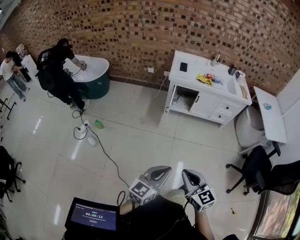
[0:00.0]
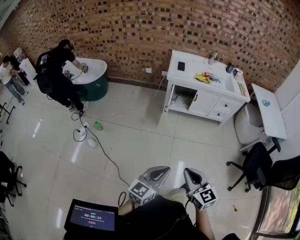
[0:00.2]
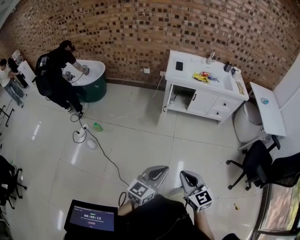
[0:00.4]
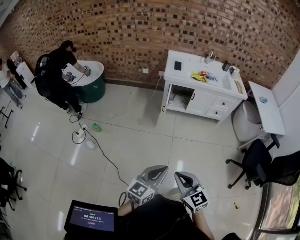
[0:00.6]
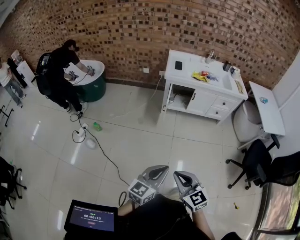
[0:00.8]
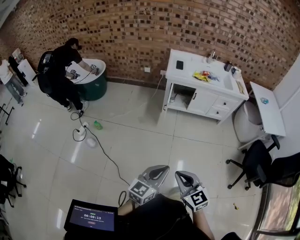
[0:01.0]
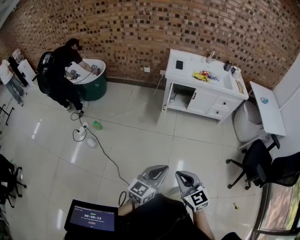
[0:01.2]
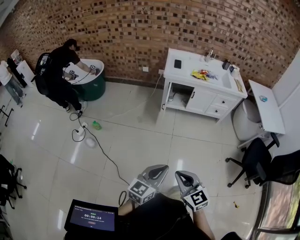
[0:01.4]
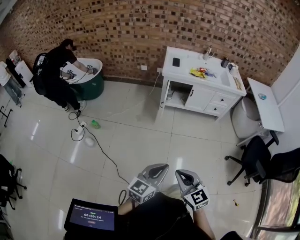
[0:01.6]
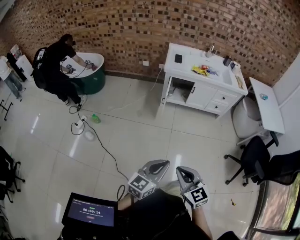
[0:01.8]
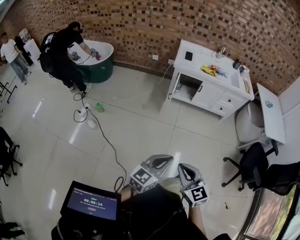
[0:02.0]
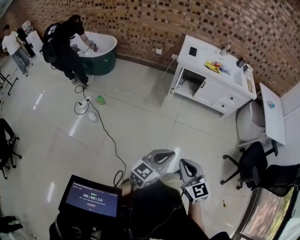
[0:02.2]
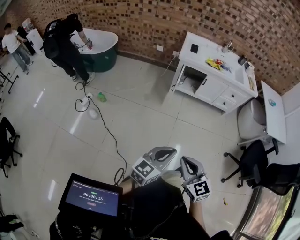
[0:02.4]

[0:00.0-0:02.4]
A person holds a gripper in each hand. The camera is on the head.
0:00.0 to 0:01.2: The right gripper ends up roughly 5 cm from where it was.
0:01.2 to 0:02.4: There are only small adjustments of the grippers.

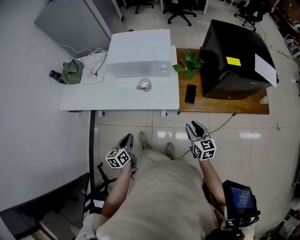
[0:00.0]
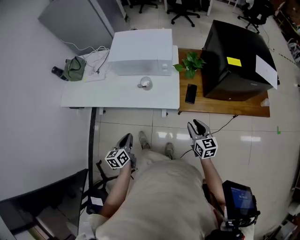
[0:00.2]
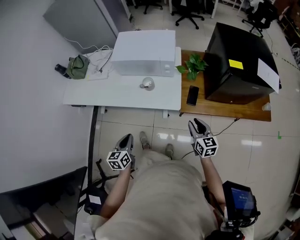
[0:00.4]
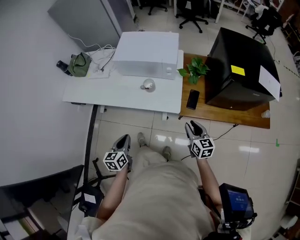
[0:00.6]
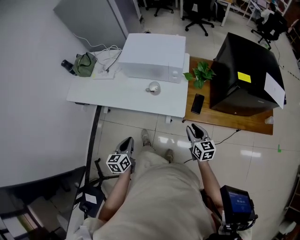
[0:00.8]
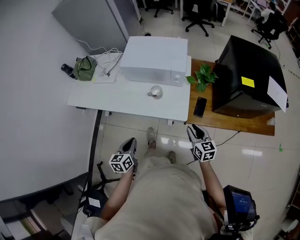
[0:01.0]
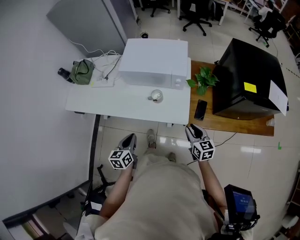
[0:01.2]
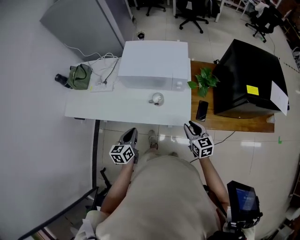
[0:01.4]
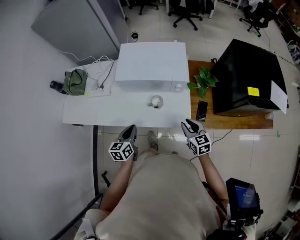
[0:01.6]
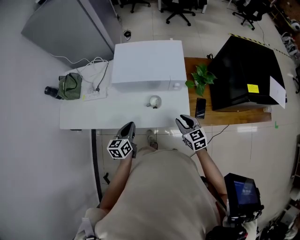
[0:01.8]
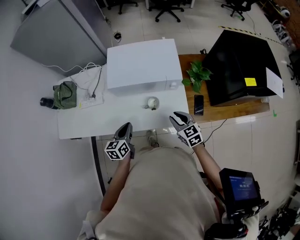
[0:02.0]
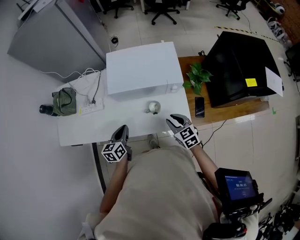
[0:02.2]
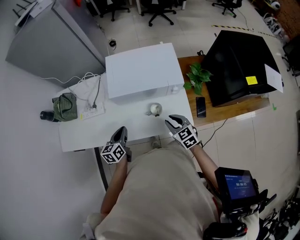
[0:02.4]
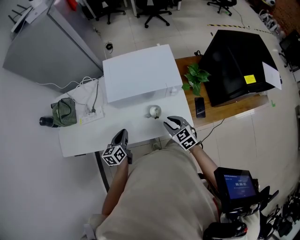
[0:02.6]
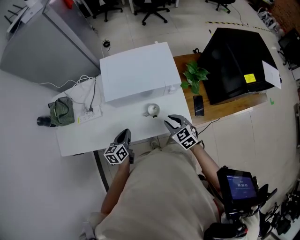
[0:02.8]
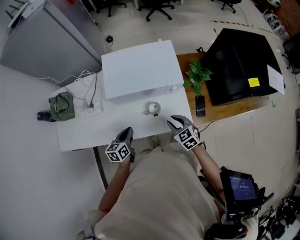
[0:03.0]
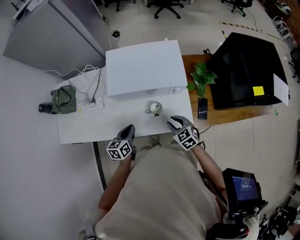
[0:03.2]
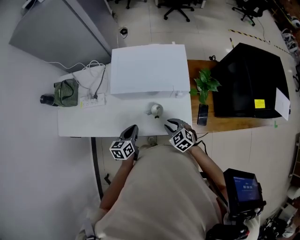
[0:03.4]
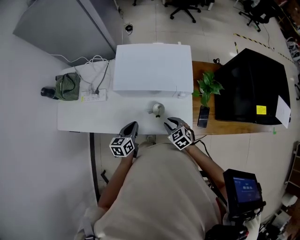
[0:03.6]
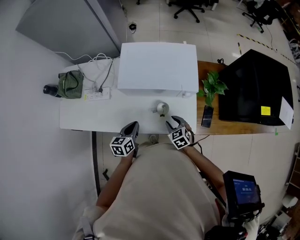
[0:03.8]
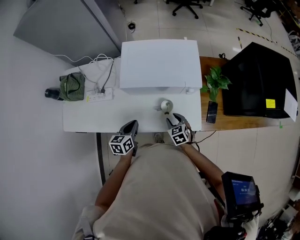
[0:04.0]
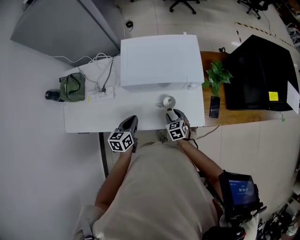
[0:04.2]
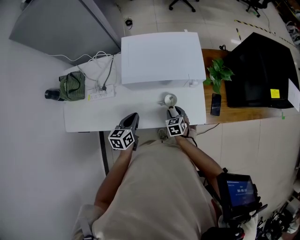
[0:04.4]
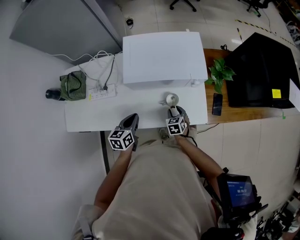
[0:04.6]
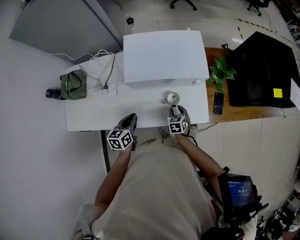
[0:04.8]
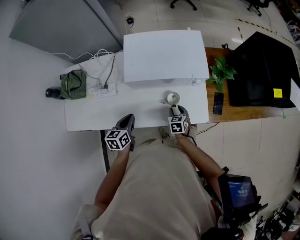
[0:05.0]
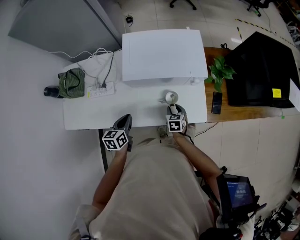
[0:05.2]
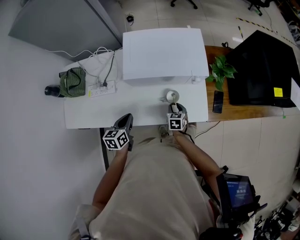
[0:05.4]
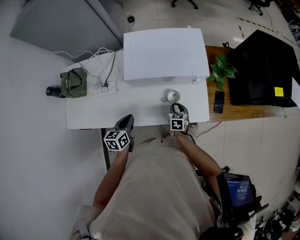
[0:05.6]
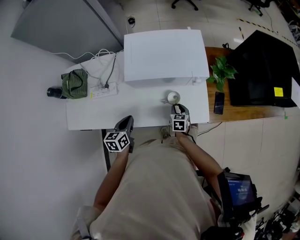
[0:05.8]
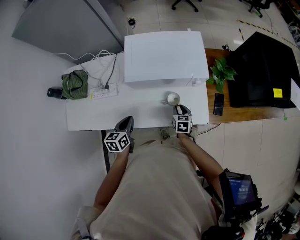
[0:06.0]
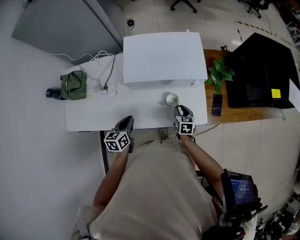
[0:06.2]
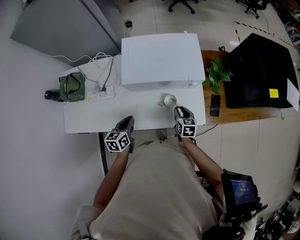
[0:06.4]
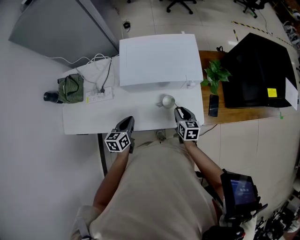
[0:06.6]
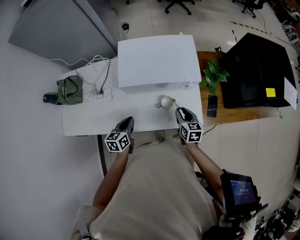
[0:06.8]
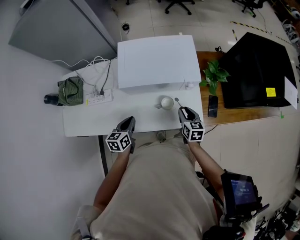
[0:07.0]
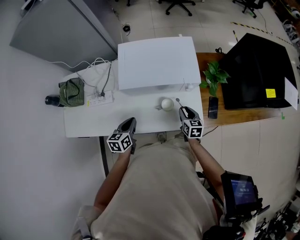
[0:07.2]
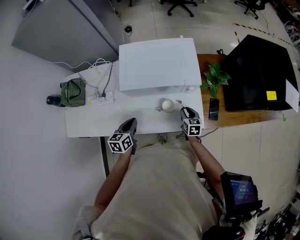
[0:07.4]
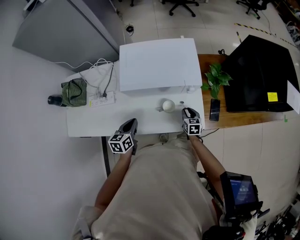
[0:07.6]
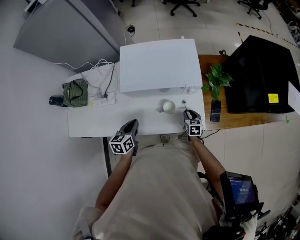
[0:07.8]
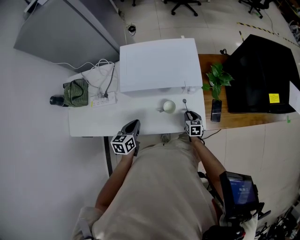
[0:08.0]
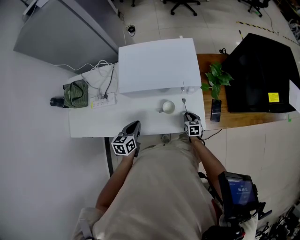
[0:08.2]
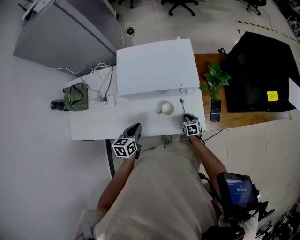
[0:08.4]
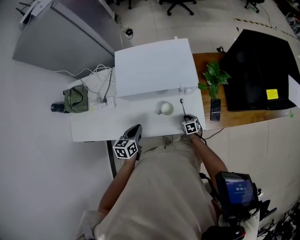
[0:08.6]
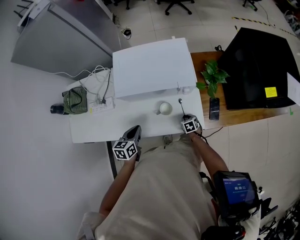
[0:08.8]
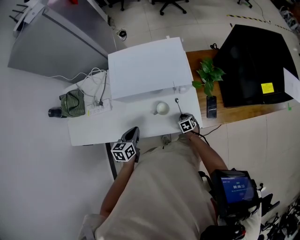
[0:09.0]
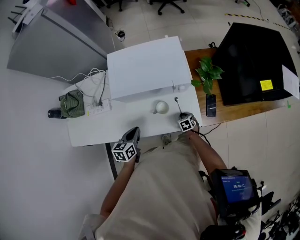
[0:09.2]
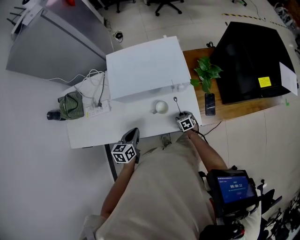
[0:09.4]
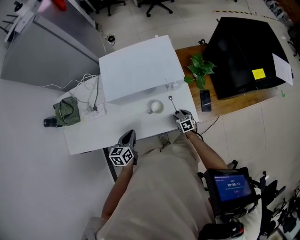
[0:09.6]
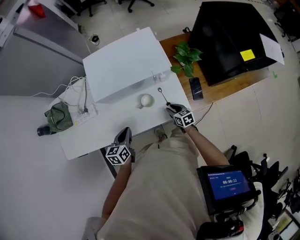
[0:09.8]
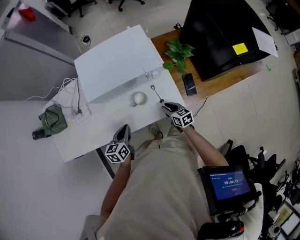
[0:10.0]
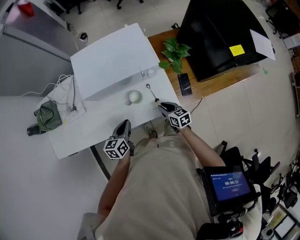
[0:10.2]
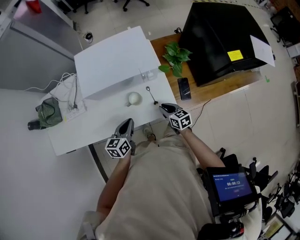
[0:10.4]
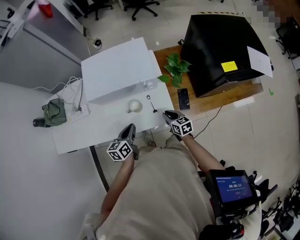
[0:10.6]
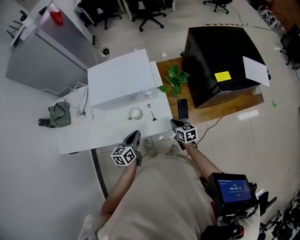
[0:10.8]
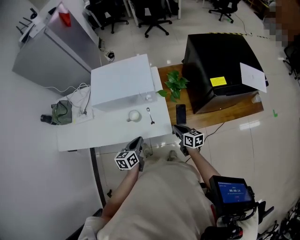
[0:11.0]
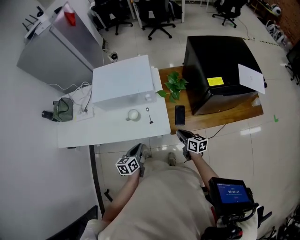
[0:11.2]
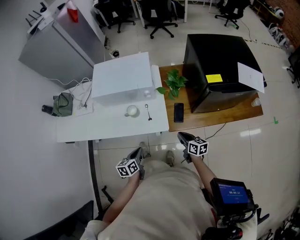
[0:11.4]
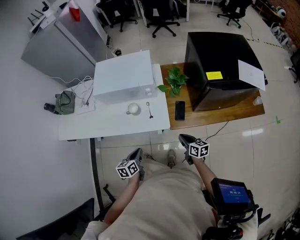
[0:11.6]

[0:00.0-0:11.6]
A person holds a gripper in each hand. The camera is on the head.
0:00.0 to 0:01.4: The left gripper travels forward by roughly 15 cm, while the right gripper is displaced forward and to the left by roughly 15 cm.
0:01.4 to 0:02.8: The right gripper is displaced to the left and forward by approximately 15 cm. Meanwhile the left gripper goes approximately 15 cm forward and to the left.
0:02.8 to 0:04.4: The right gripper is displaced downward by roughly 15 cm, and swivels some 20 degrees.
0:04.4 to 0:05.8: The left gripper moves some 5 cm.
0:05.8 to 0:07.2: The left gripper shifts by some 5 cm. Meanwhile the right gripper goes some 10 cm to the right and upward.
0:07.2 to 0:08.8: The right gripper shifts roughly 20 cm downward, and turns by some 30 degrees.
0:08.8 to 0:10.2: The right gripper shifts roughly 15 cm upward, swivels some 30 degrees, and opens, then closes once more, while the left gripper moves to the right, some 5 cm.
0:10.2 to 0:11.6: The right gripper shifts some 25 cm to the right and backward, while the left gripper travels backward and to the right by roughly 25 cm.

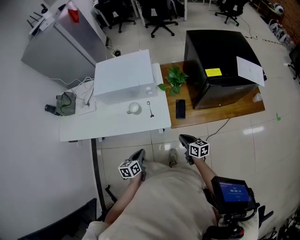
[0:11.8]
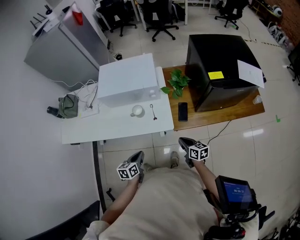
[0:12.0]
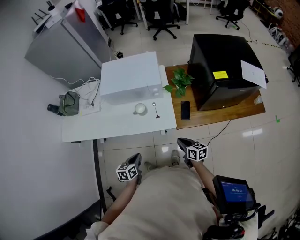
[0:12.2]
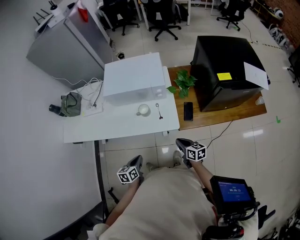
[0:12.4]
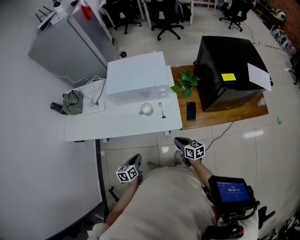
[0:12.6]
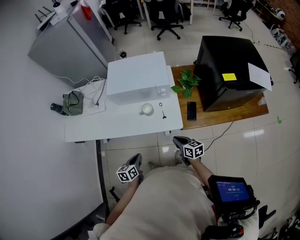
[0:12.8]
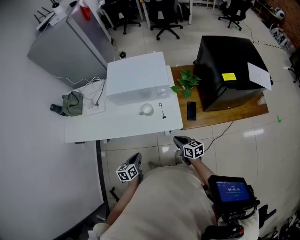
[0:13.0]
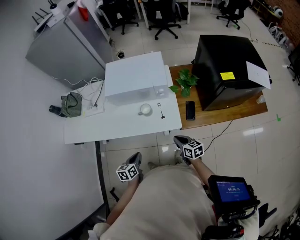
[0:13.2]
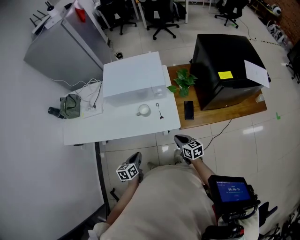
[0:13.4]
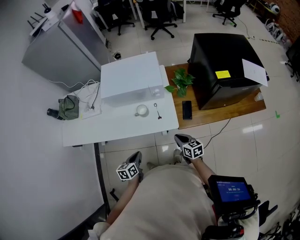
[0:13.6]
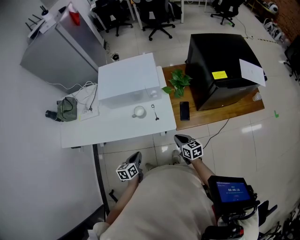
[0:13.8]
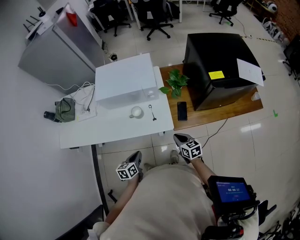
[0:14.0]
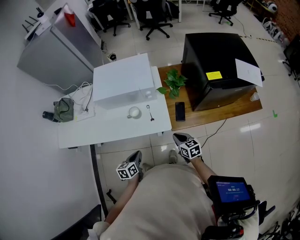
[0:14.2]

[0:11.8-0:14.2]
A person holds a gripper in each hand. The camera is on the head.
0:11.8 to 0:13.0: Both grippers travel together to the left, roughly 10 cm.
0:13.0 to 0:14.2: The grippers both shift to the right by about 10 cm.

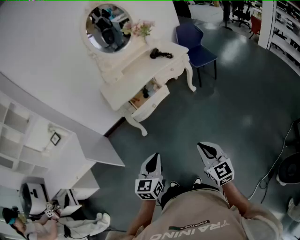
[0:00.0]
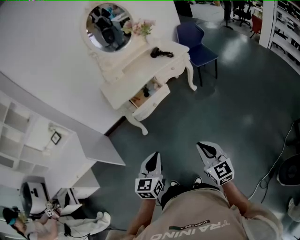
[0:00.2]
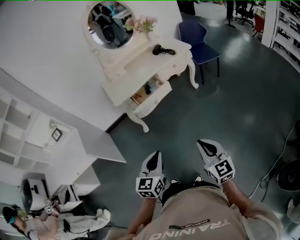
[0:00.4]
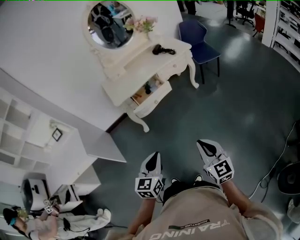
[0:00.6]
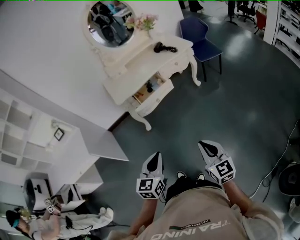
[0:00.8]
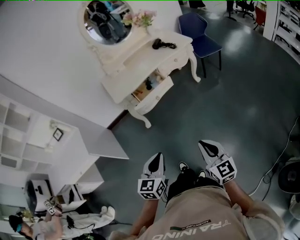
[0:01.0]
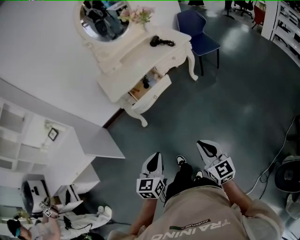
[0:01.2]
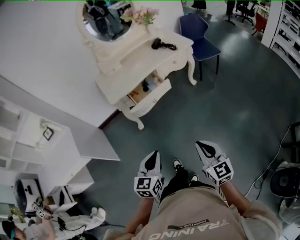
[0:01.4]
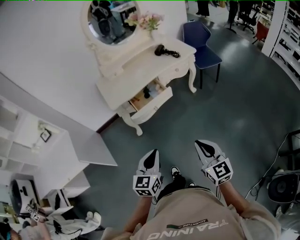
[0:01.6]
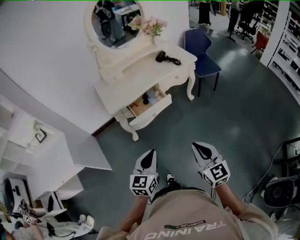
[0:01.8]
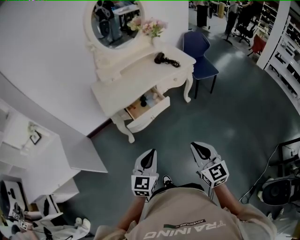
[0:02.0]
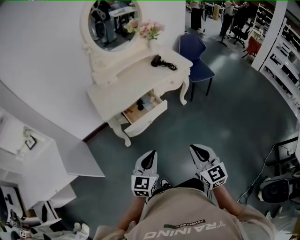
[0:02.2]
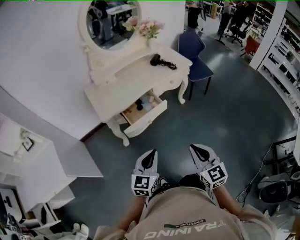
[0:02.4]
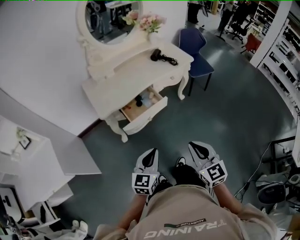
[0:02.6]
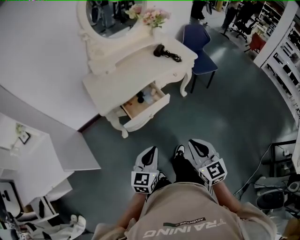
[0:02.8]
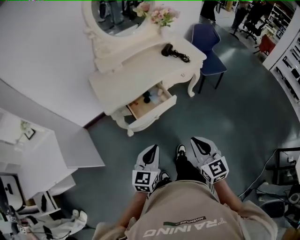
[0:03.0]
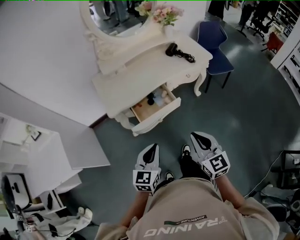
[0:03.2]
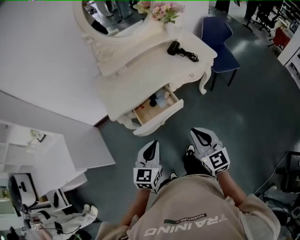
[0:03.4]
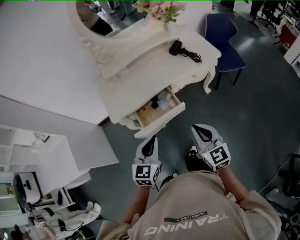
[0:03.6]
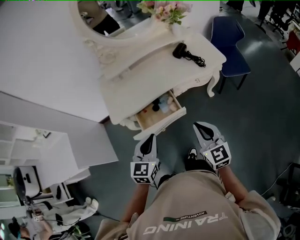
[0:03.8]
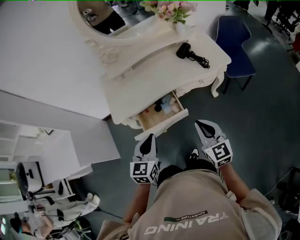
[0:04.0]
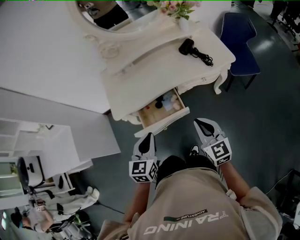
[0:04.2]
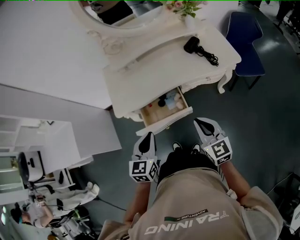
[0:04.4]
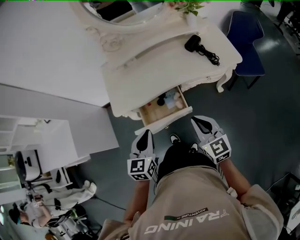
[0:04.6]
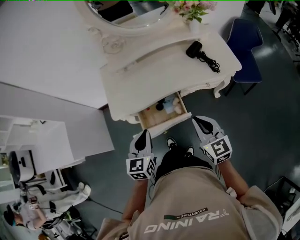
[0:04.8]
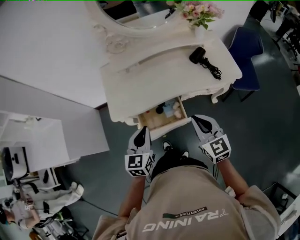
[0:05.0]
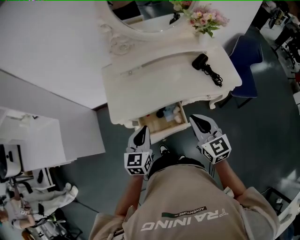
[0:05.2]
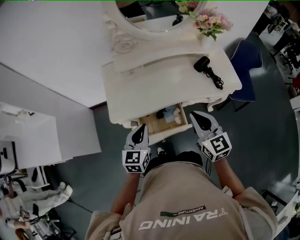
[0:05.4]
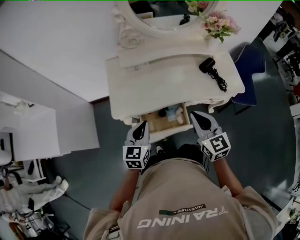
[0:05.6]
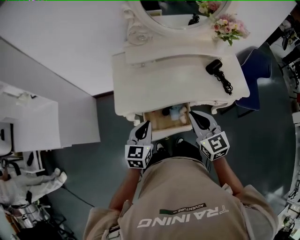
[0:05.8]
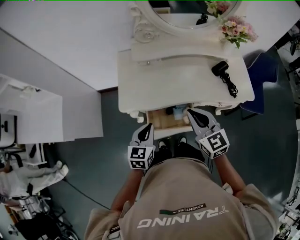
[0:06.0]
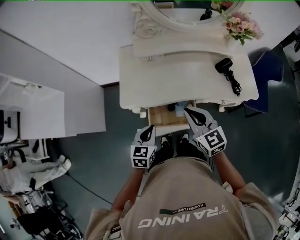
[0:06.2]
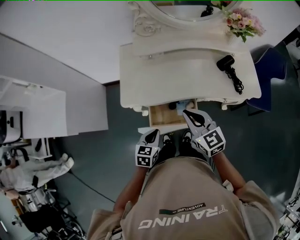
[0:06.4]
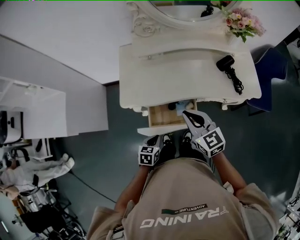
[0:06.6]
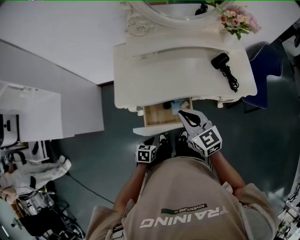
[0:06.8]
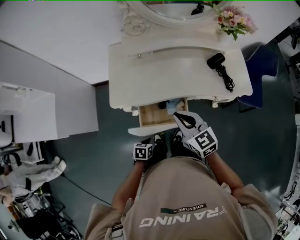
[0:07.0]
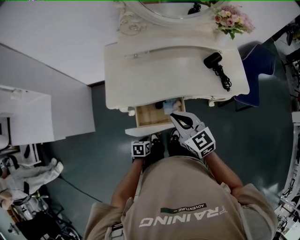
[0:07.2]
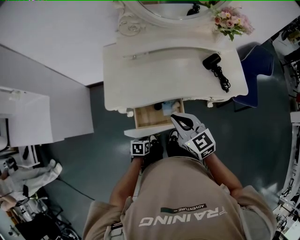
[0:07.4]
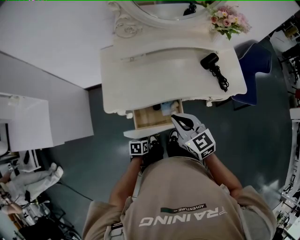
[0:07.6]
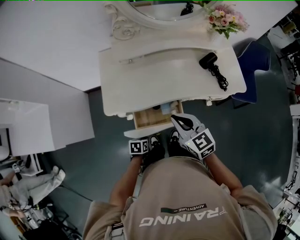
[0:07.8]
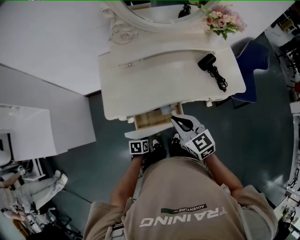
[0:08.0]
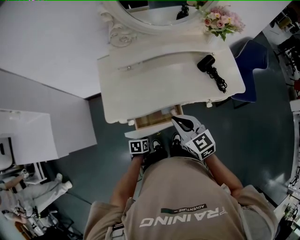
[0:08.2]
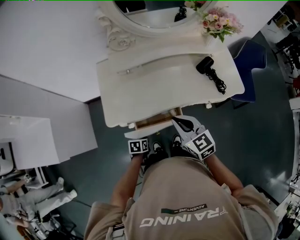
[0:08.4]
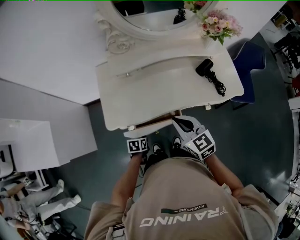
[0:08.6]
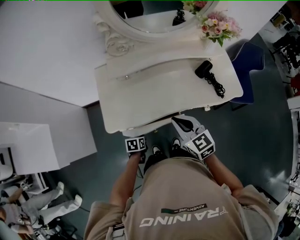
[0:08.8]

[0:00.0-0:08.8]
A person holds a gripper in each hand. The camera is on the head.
0:00.0 to 0:01.4: Both grippers move forward, about 5 cm.
0:01.4 to 0:03.0: The grippers both shift forward by some 20 cm.
0:03.0 to 0:04.4: The grippers both shift forward by about 20 cm. The left gripper turns by some 20 degrees.
0:04.4 to 0:05.8: The right gripper travels forward, to the left and upward by about 15 cm. The left gripper is displaced forward and to the left by some 15 cm.
0:05.8 to 0:07.4: The left gripper is displaced downward by some 25 cm, and tilts its fingers about 40 degrees downward. The right gripper ends up about 5 cm from where it was.
0:07.4 to 0:08.8: The right gripper heads forward, covering about 5 cm. Meanwhile the left gripper shifts about 10 cm forward.
